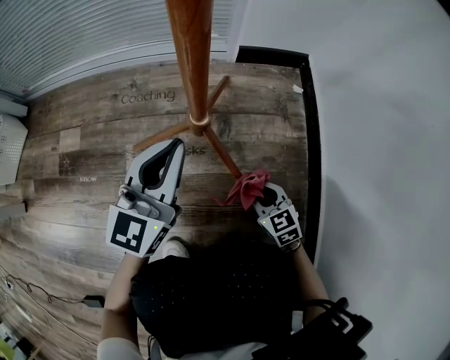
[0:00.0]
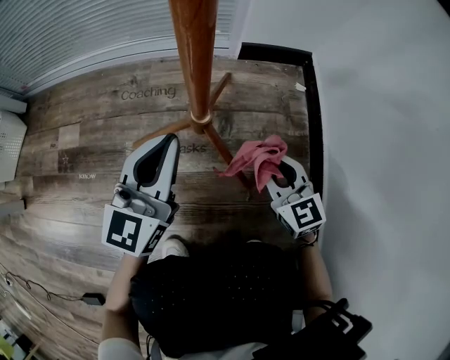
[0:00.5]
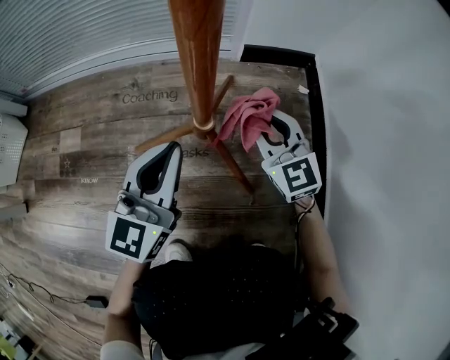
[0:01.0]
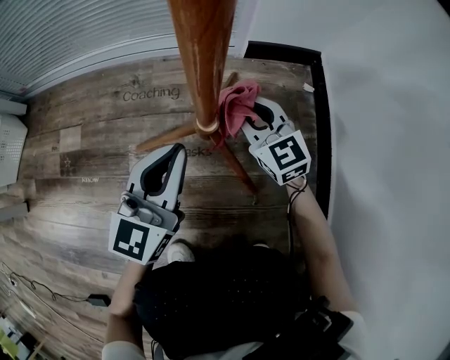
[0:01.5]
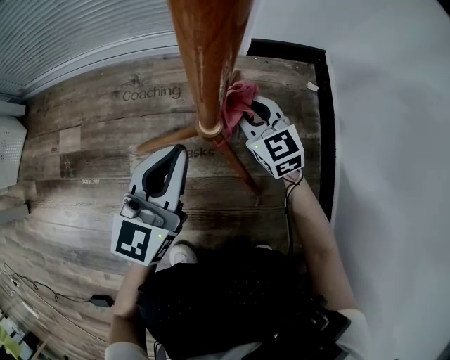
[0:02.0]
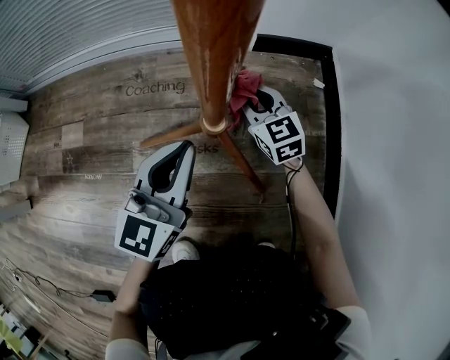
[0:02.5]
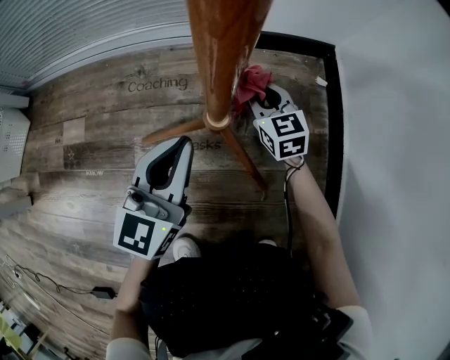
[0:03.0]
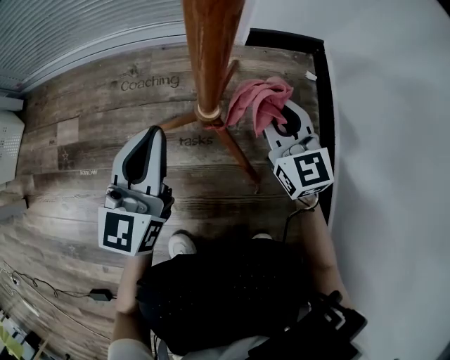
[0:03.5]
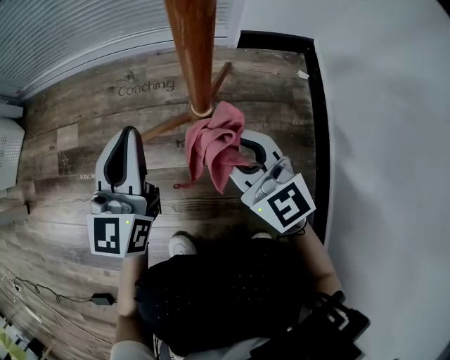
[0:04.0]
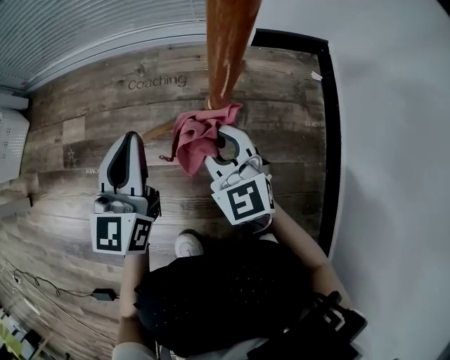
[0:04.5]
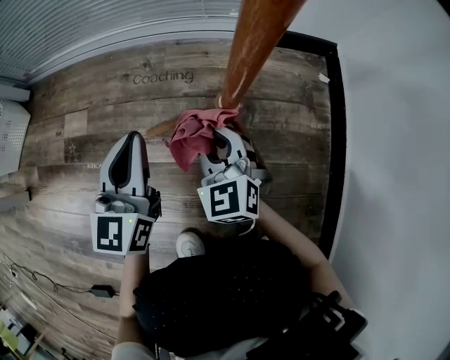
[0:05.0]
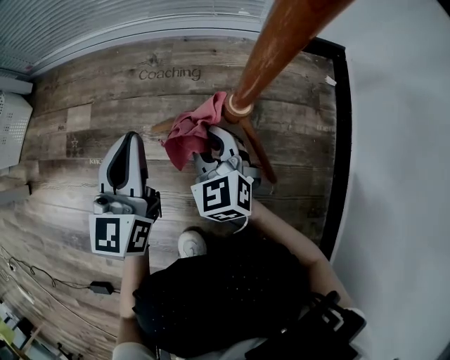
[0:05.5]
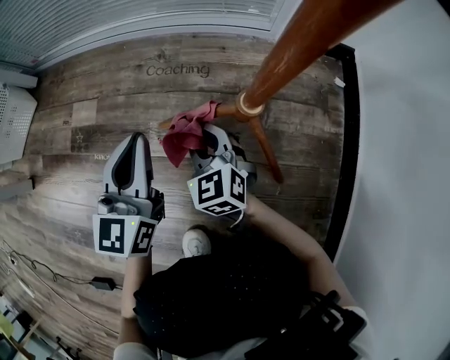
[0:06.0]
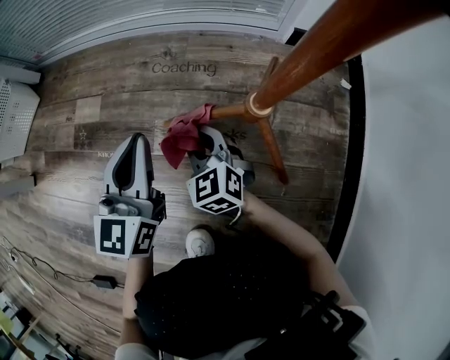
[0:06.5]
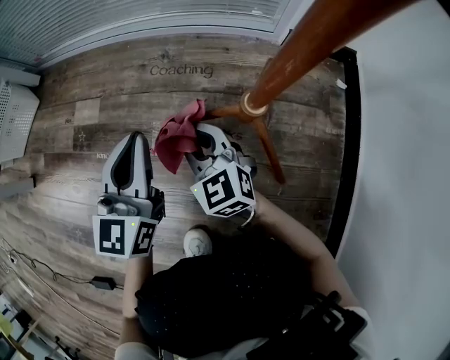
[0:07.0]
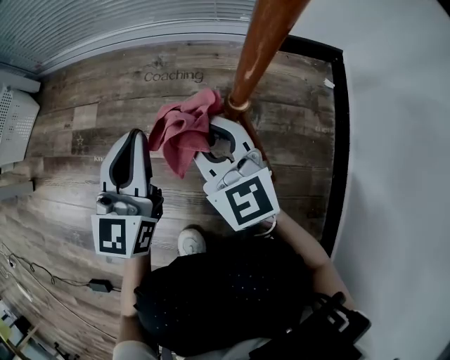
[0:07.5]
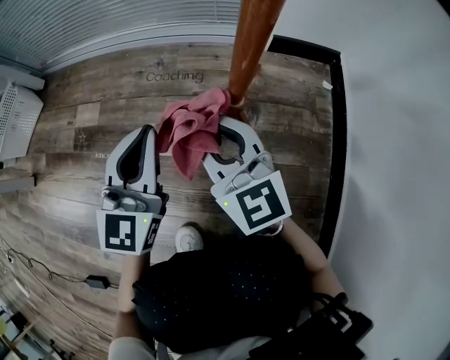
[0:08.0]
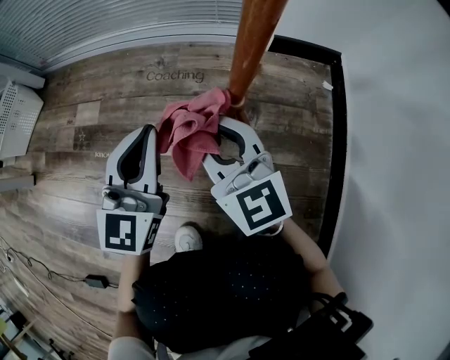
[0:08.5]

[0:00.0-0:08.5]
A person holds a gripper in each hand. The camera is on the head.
0:00.0 to 0:02.0: The right gripper shifts some 25 cm forward and upward, and swivels about 20 degrees.
0:02.0 to 0:04.0: The right gripper is displaced upward and backward by roughly 20 cm, and rotates about 20 degrees, while the left gripper heads to the left, covering about 5 cm.
0:04.0 to 0:06.5: The right gripper is displaced downward and to the left by about 20 cm, and points its fingers approximately 30 degrees further downward. The left gripper travels to the left by approximately 10 cm.
0:06.5 to 0:08.5: The left gripper is displaced to the right by some 5 cm. Meanwhile the right gripper shifts some 15 cm upward, and changes its angle by about 20 degrees.

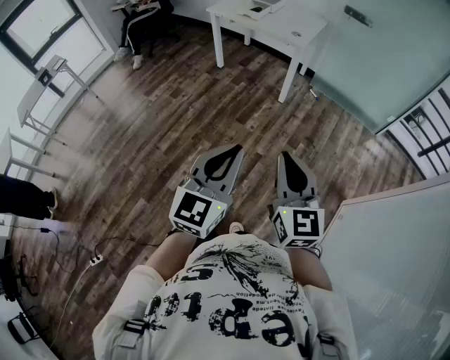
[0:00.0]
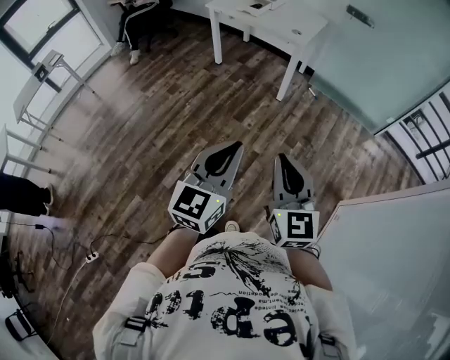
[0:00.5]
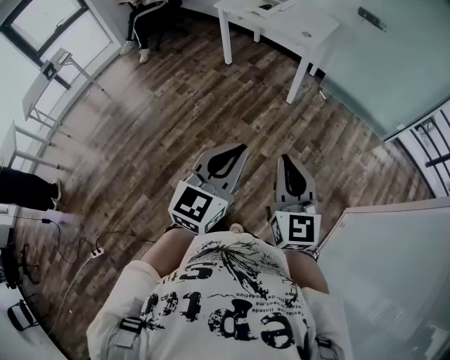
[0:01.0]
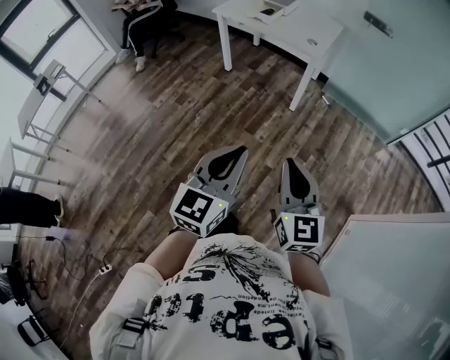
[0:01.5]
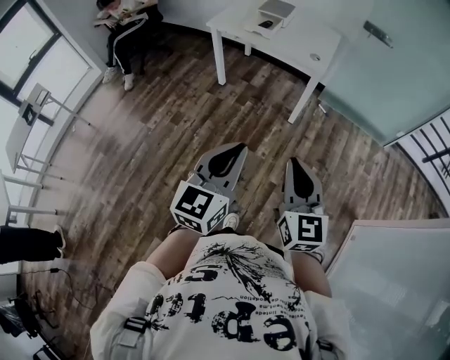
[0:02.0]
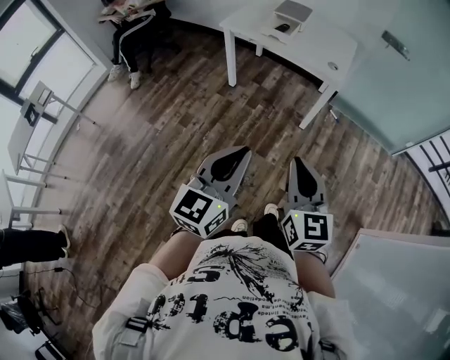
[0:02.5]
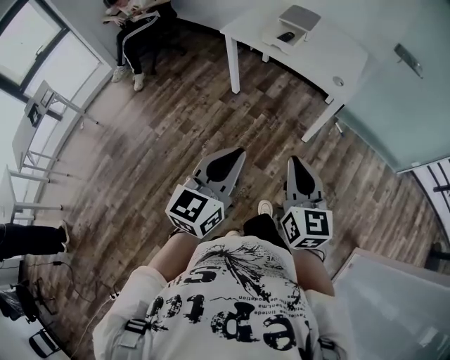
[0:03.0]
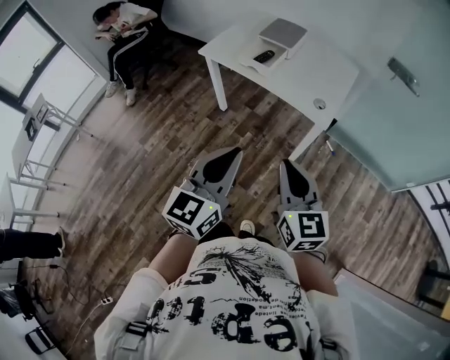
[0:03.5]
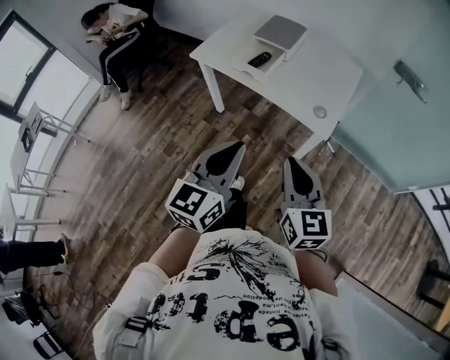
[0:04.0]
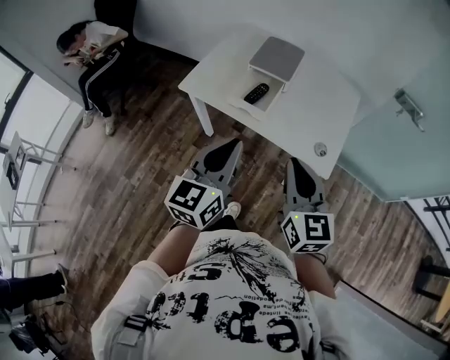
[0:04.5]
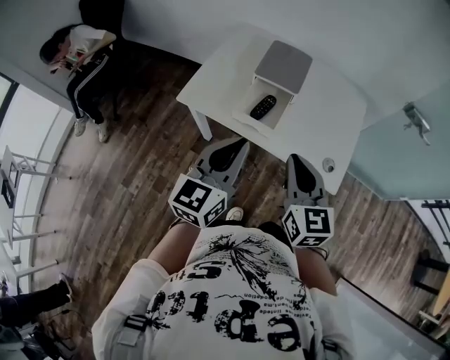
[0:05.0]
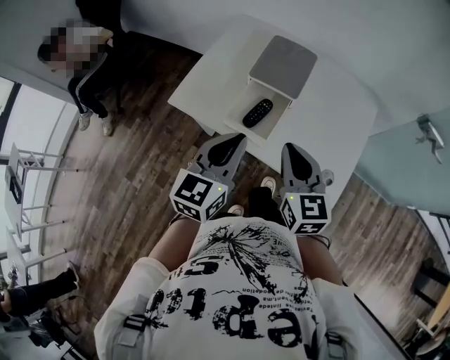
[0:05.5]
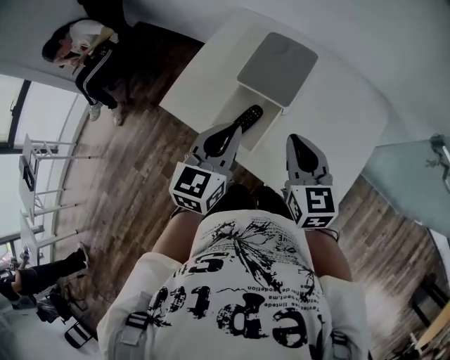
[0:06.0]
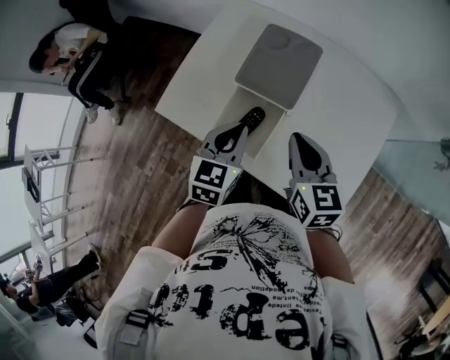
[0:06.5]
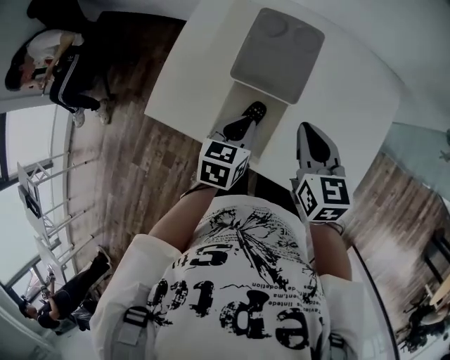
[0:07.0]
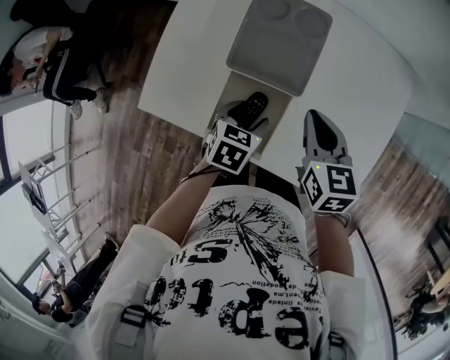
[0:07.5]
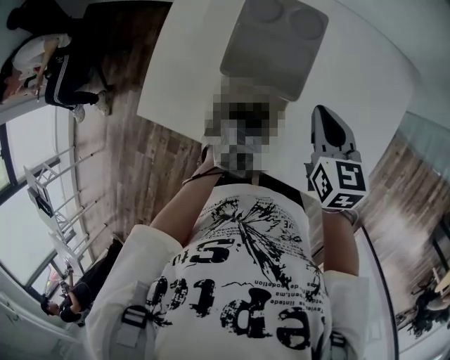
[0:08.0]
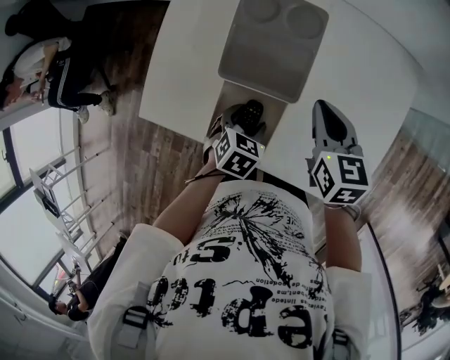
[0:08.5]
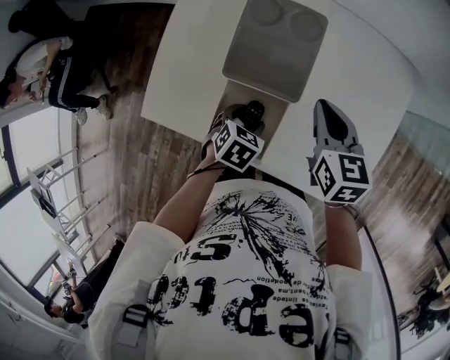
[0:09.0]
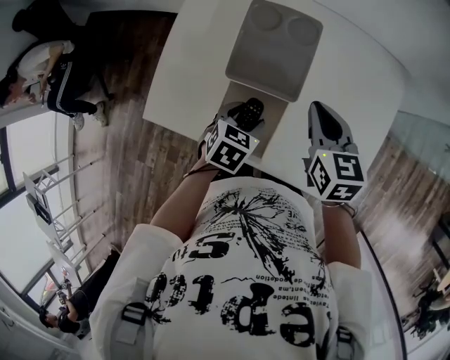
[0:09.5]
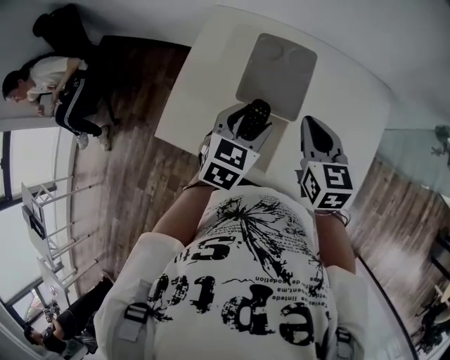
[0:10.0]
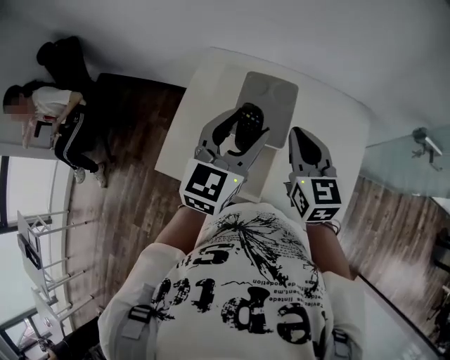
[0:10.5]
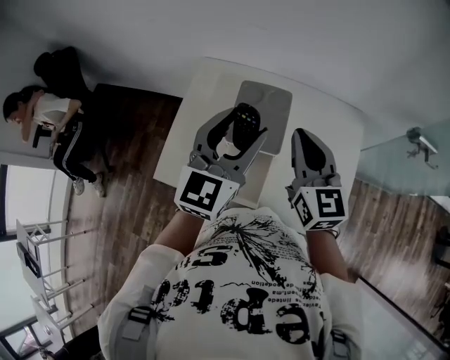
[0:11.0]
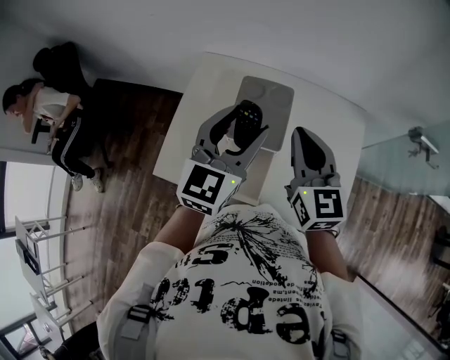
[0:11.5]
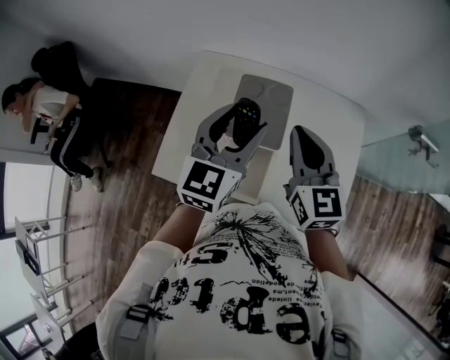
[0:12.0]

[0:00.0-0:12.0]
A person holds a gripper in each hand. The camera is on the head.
0:00.0 to 0:02.0: The two grippers go some 30 cm forward and to the left.
0:02.0 to 0:04.0: The two grippers travel together, forward, some 40 cm.
0:04.0 to 0:06.0: The two grippers travel together, forward, roughly 50 cm.
0:06.0 to 0:08.0: The right gripper goes approximately 15 cm forward and downward, and swivels approximately 20 degrees; the left gripper is displaced downward by roughly 25 cm, angles its fingers downward, by approximately 50 degrees, and opens its fingers.
0:08.0 to 0:10.0: The right gripper is displaced upward by approximately 10 cm; the left gripper shifts some 20 cm upward, and turns by roughly 30 degrees.
0:10.0 to 0:12.0: Both grippers move upward, some 15 cm. The left gripper turns by some 30 degrees; the right gripper swivels about 20 degrees.

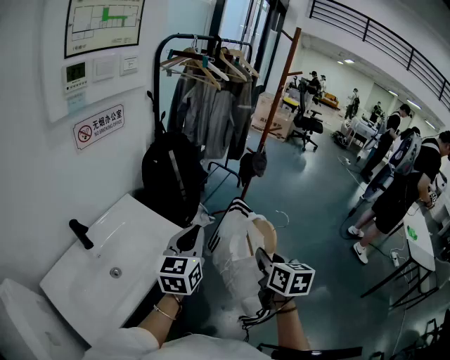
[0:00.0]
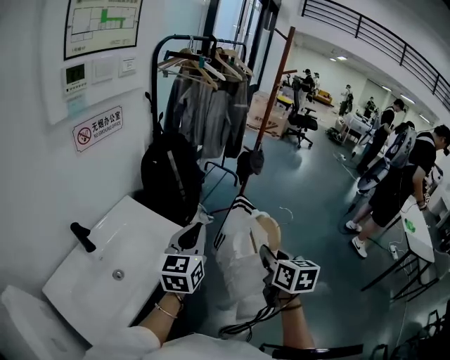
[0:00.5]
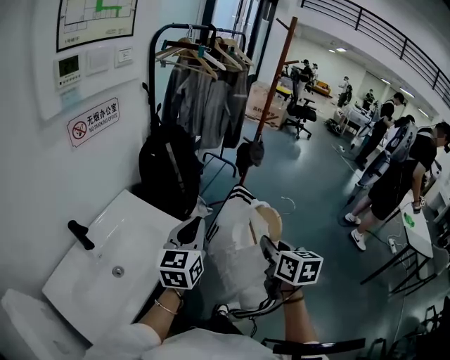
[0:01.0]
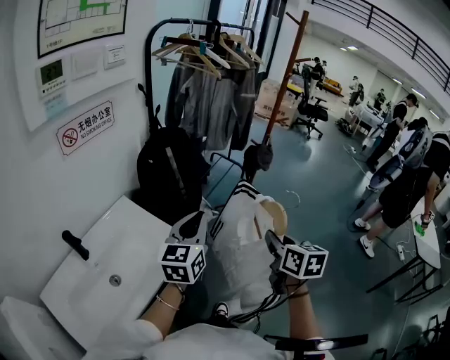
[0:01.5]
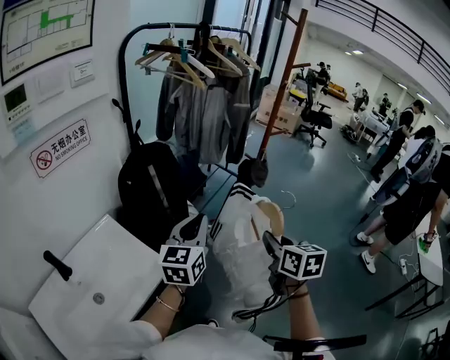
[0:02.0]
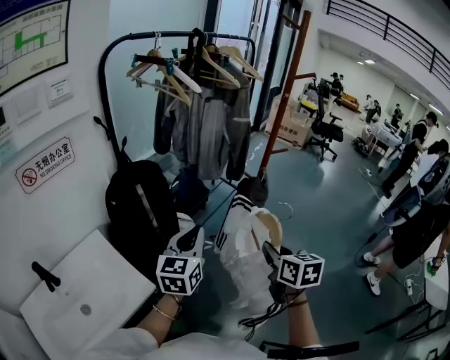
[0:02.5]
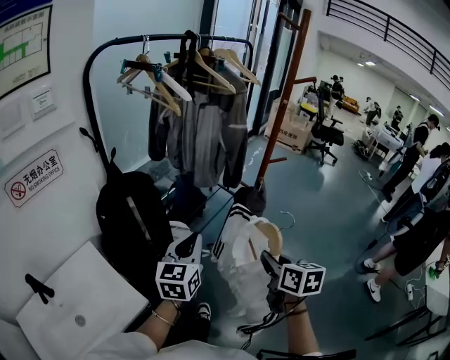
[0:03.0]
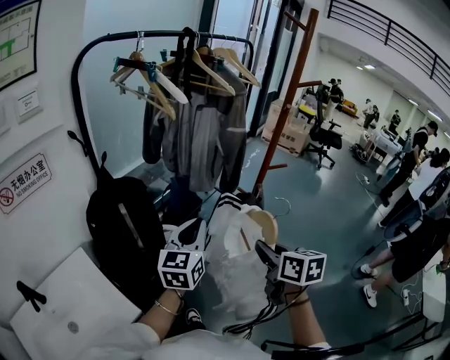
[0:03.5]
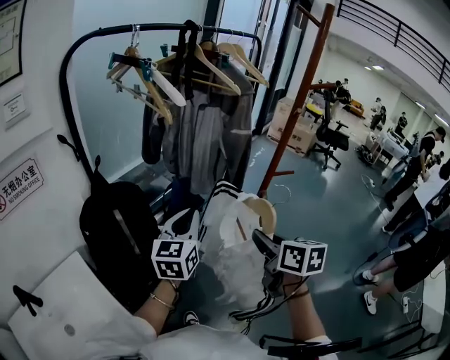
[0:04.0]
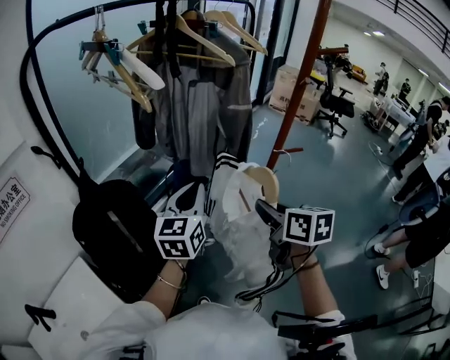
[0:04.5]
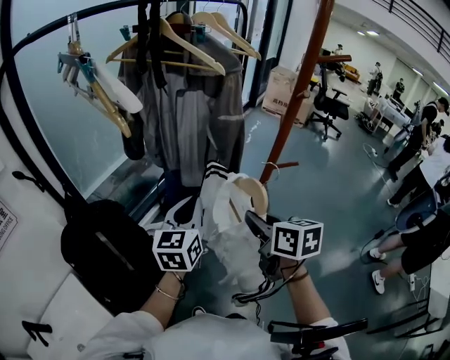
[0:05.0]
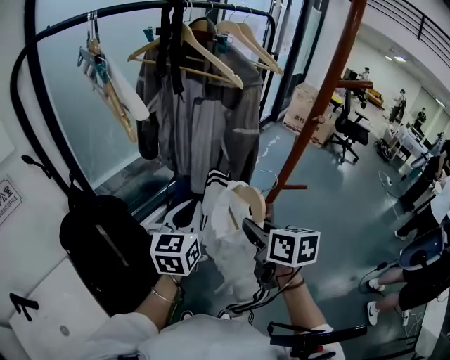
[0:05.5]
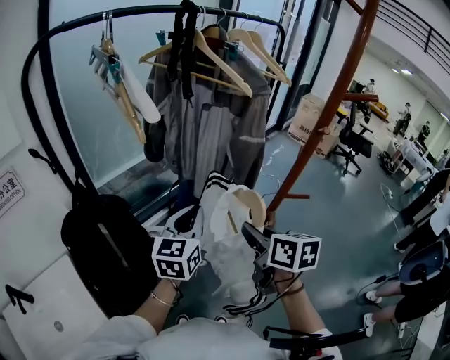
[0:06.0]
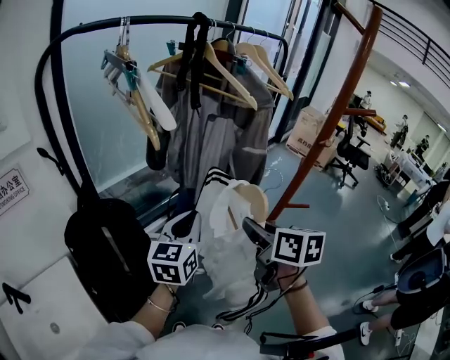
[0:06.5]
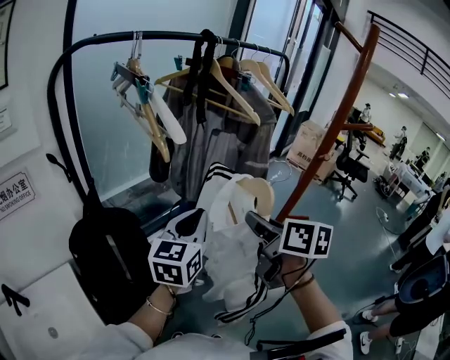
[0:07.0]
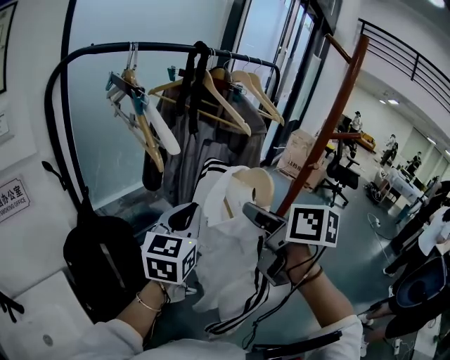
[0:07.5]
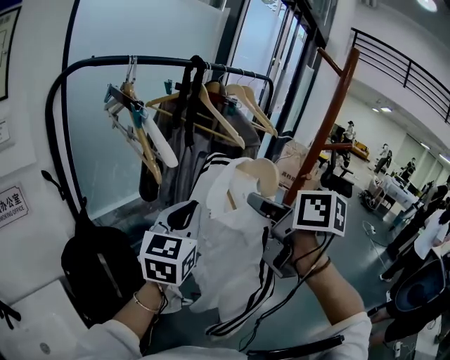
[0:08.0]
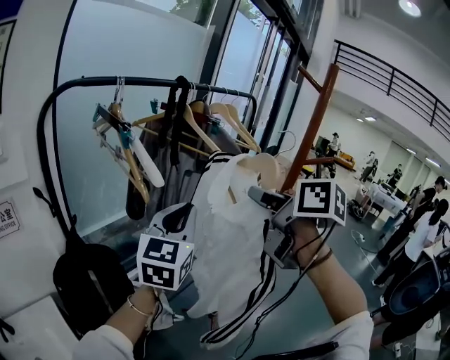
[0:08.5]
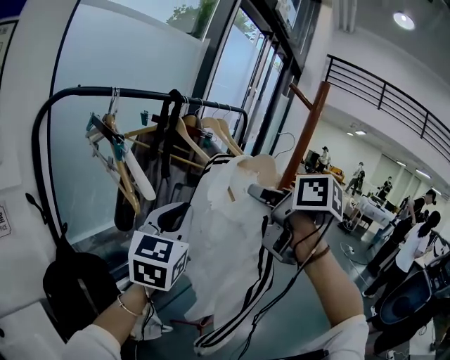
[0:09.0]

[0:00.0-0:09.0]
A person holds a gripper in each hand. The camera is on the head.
0:00.0 to 0:02.0: The two grippers go roughly 20 cm forward.
0:02.0 to 0:04.5: The grippers both shift forward by about 35 cm.
0:04.5 to 0:07.0: The left gripper travels upward by roughly 5 cm. Meanwhile the right gripper moves upward and forward, some 15 cm.
0:07.0 to 0:09.0: The grippers both shift upward by approximately 20 cm.
